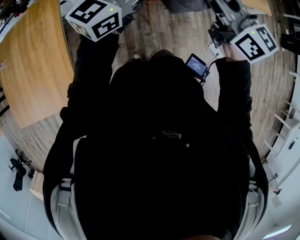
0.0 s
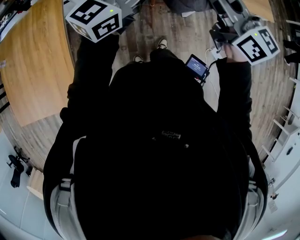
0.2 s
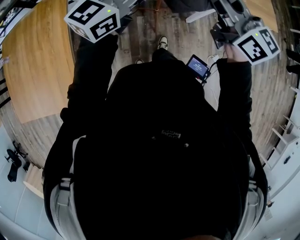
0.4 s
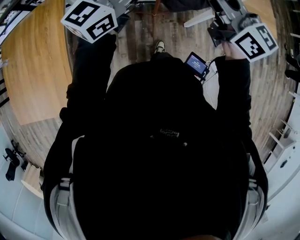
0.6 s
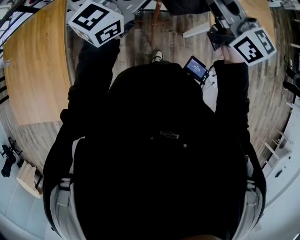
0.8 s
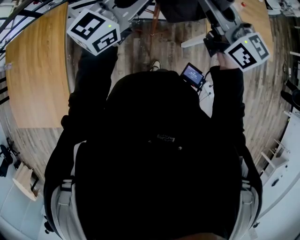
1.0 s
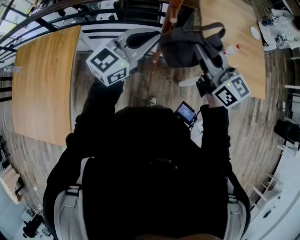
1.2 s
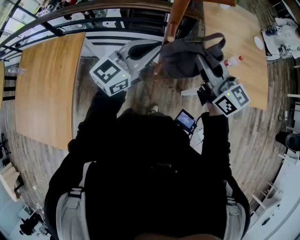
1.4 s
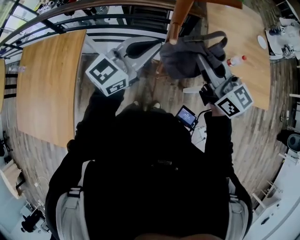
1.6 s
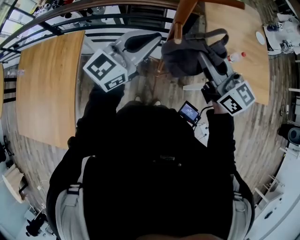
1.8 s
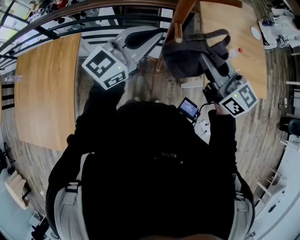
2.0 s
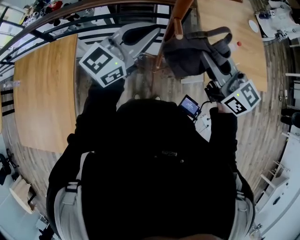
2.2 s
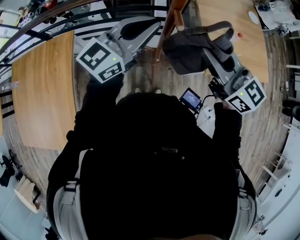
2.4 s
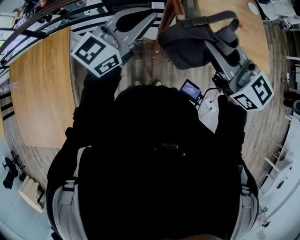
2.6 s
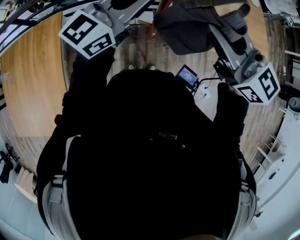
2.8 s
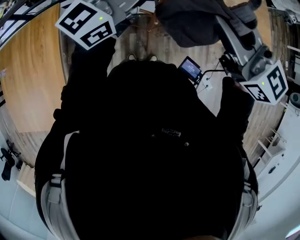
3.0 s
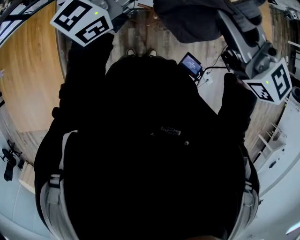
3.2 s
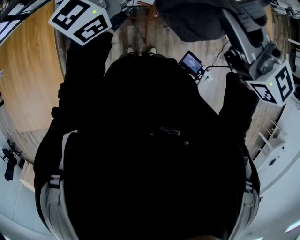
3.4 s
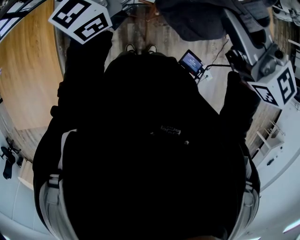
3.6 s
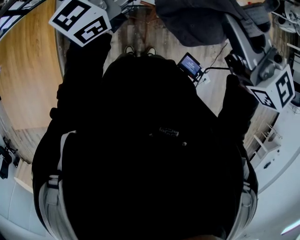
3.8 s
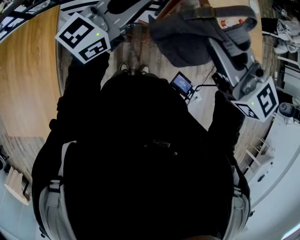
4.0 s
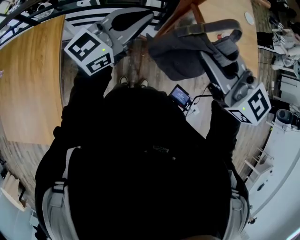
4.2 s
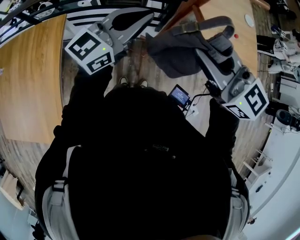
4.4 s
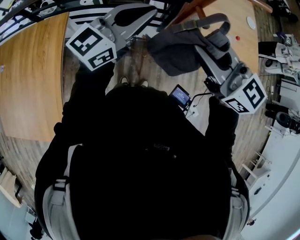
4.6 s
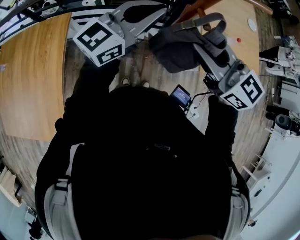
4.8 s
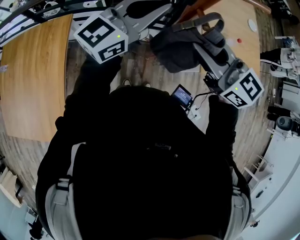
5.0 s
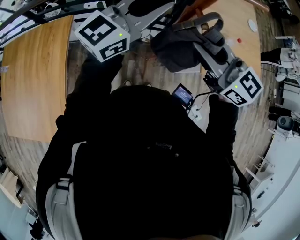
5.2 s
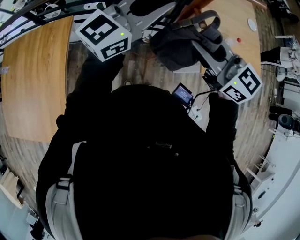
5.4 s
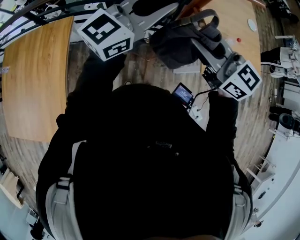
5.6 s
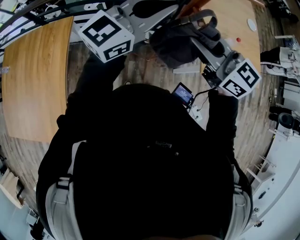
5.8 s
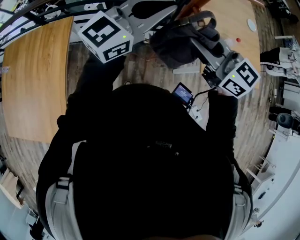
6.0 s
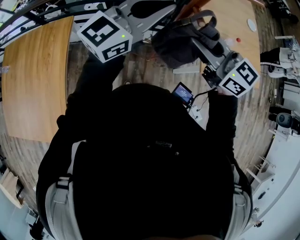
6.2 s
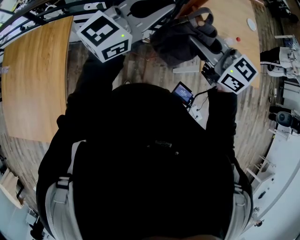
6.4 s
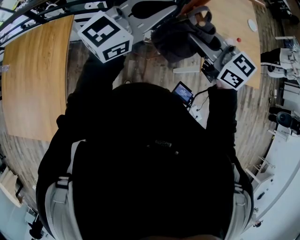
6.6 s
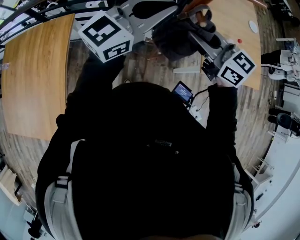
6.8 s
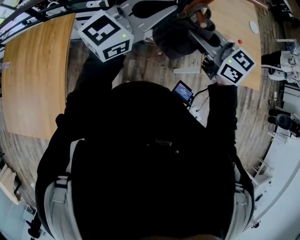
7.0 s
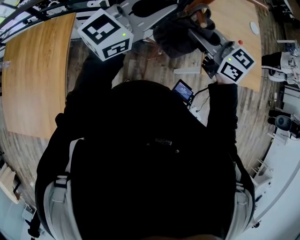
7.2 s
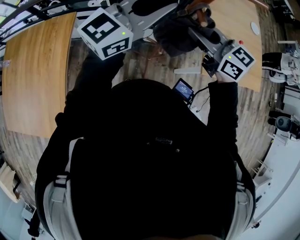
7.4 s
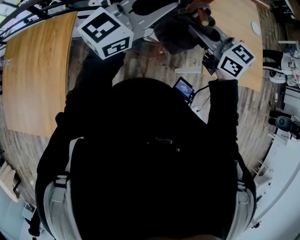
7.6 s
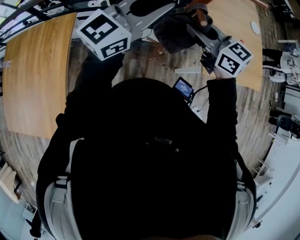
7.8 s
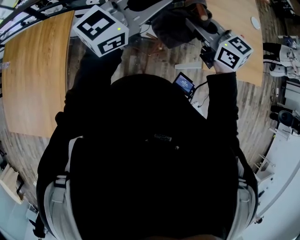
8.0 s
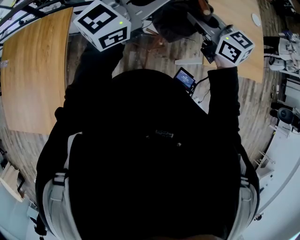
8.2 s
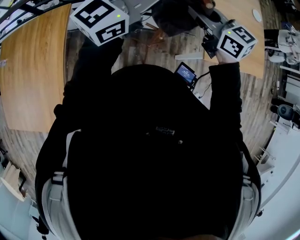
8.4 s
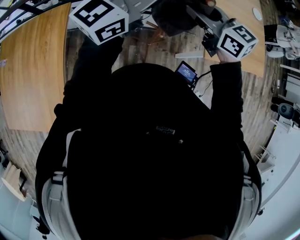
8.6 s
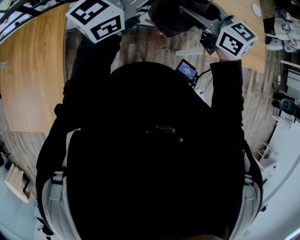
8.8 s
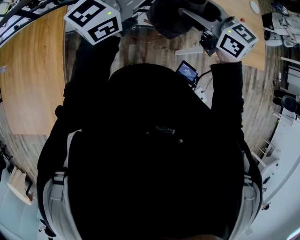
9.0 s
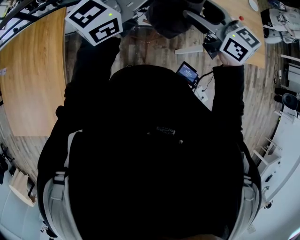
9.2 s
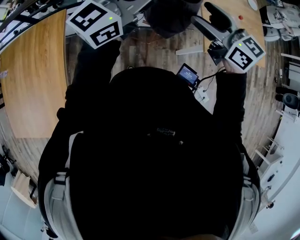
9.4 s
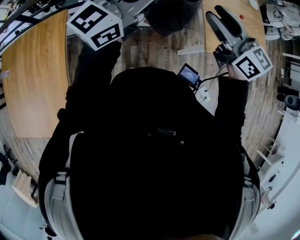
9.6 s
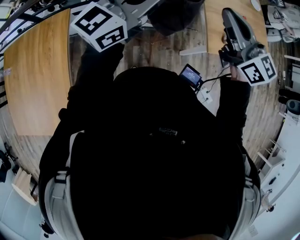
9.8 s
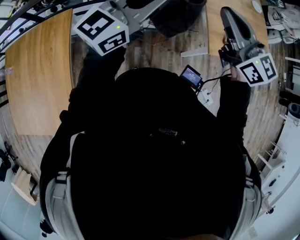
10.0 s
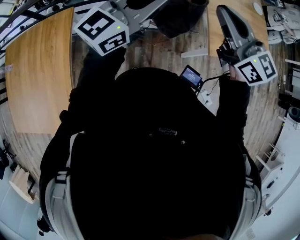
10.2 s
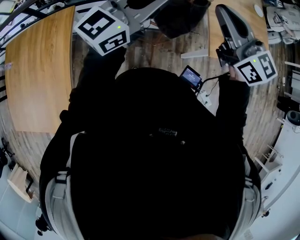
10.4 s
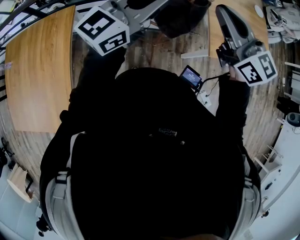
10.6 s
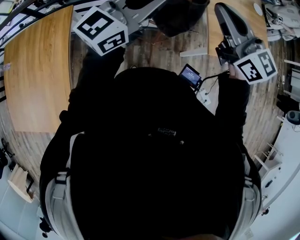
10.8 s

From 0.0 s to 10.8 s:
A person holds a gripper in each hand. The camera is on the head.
From 0.0 s to 1.6 s: Both grippers move forward, approximately 30 cm.
From 1.6 s to 3.0 s: The right gripper moves backward, about 5 cm.
From 3.0 s to 4.6 s: There are only small adjustments of the grippers.
From 4.6 s to 6.2 s: The left gripper goes about 5 cm upward.
From 6.2 s to 7.8 s: The right gripper moves roughly 5 cm.
From 7.8 s to 9.2 s: The right gripper opens up.
From 9.2 s to 10.8 s: The right gripper is displaced upward by some 10 cm, and closes.

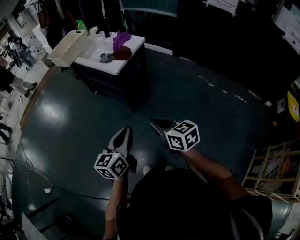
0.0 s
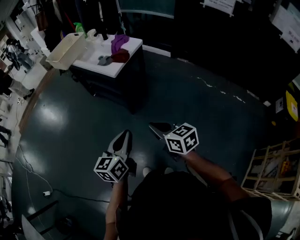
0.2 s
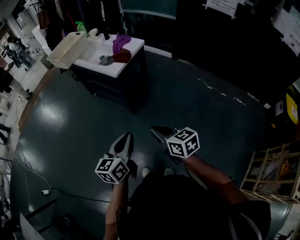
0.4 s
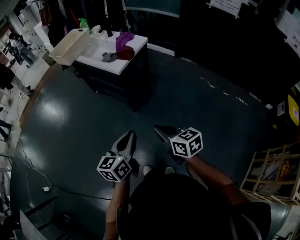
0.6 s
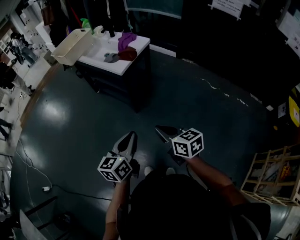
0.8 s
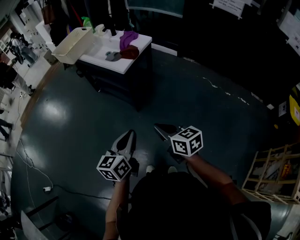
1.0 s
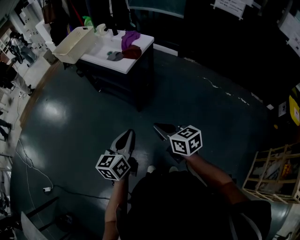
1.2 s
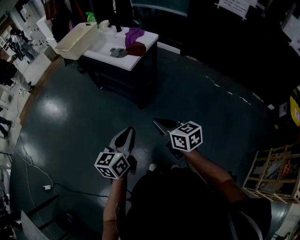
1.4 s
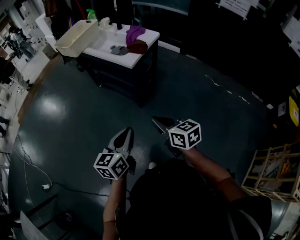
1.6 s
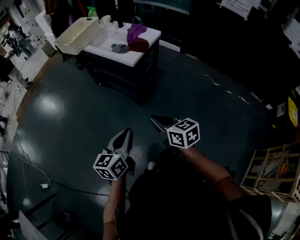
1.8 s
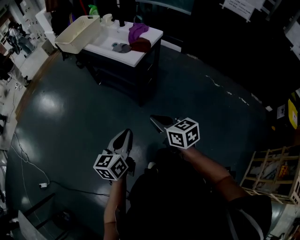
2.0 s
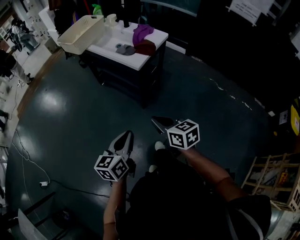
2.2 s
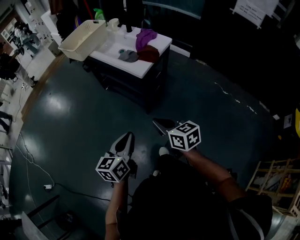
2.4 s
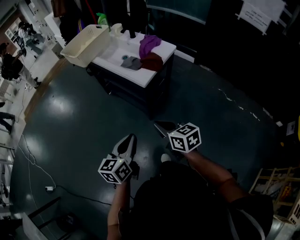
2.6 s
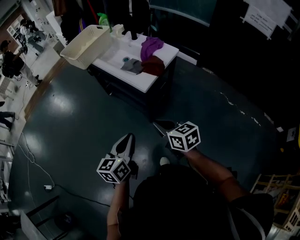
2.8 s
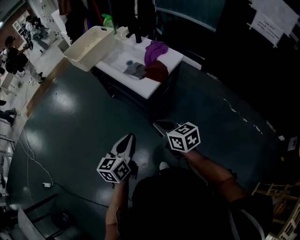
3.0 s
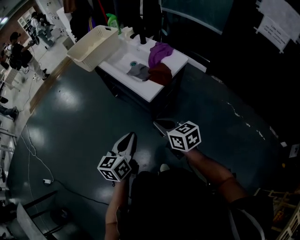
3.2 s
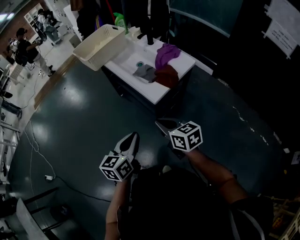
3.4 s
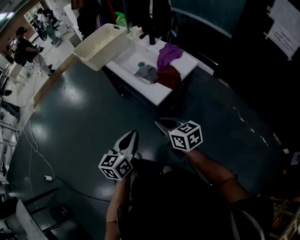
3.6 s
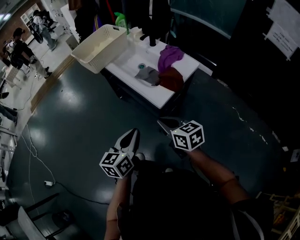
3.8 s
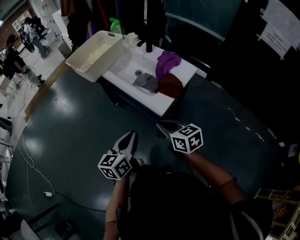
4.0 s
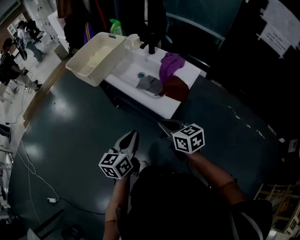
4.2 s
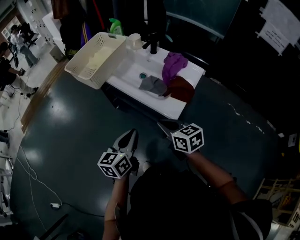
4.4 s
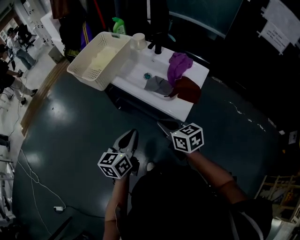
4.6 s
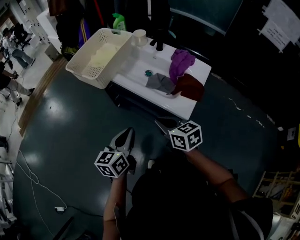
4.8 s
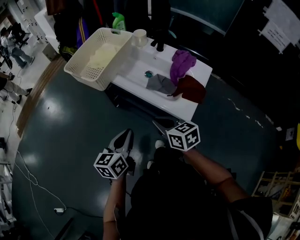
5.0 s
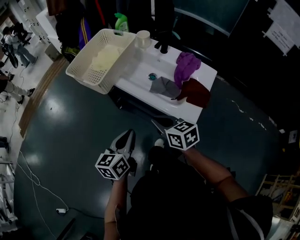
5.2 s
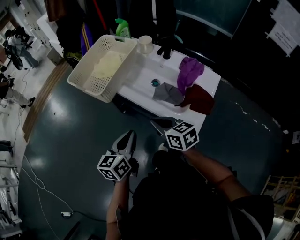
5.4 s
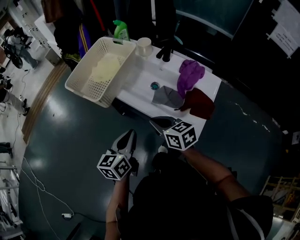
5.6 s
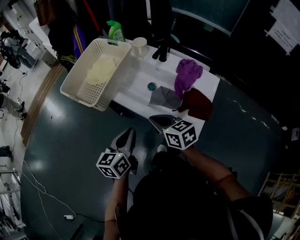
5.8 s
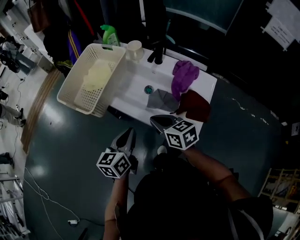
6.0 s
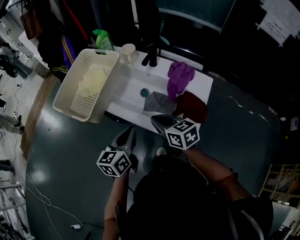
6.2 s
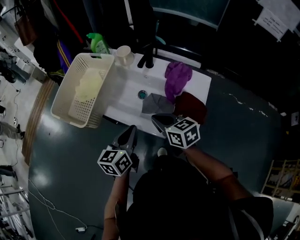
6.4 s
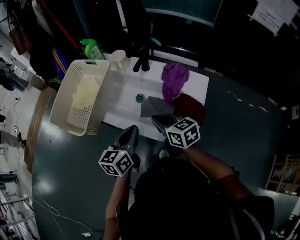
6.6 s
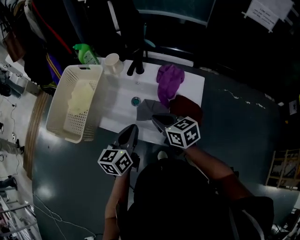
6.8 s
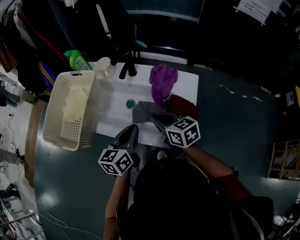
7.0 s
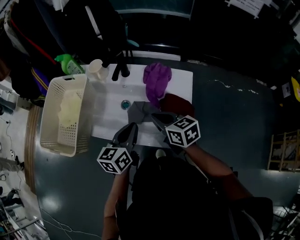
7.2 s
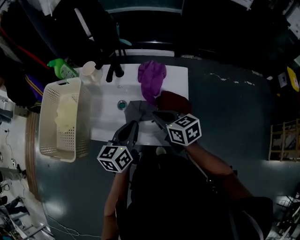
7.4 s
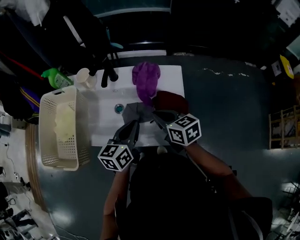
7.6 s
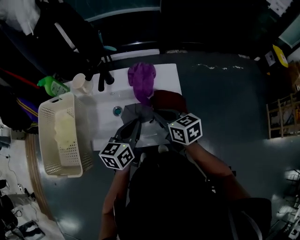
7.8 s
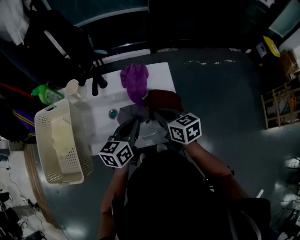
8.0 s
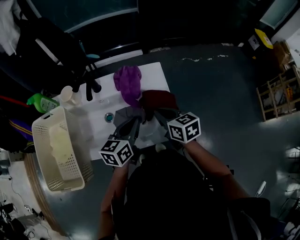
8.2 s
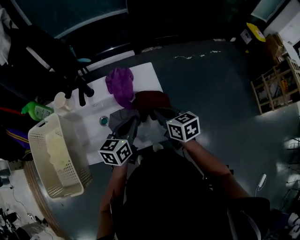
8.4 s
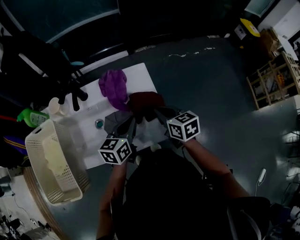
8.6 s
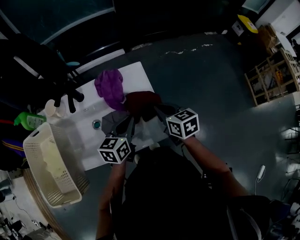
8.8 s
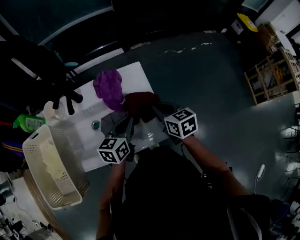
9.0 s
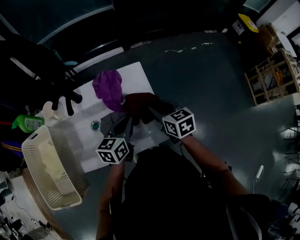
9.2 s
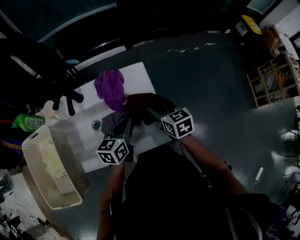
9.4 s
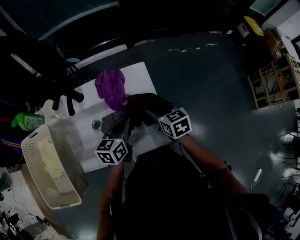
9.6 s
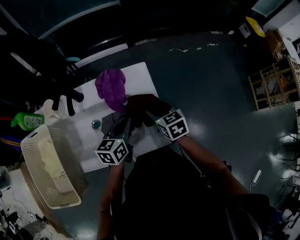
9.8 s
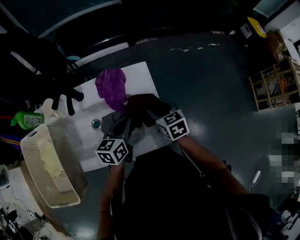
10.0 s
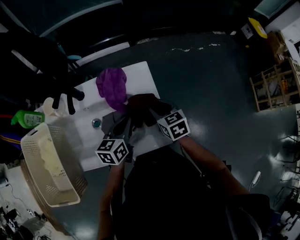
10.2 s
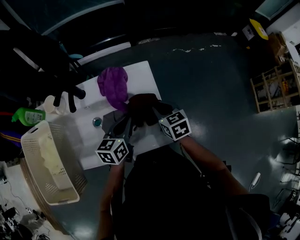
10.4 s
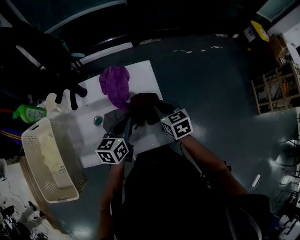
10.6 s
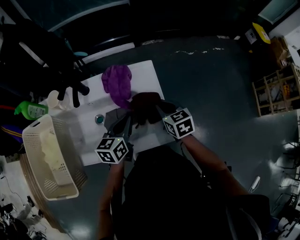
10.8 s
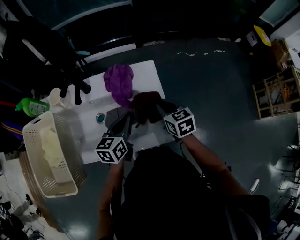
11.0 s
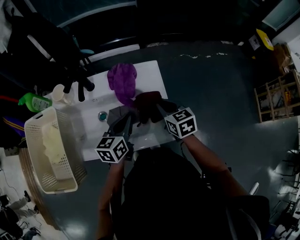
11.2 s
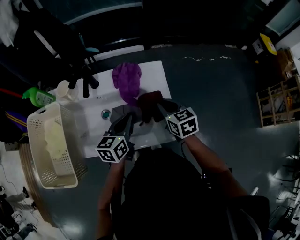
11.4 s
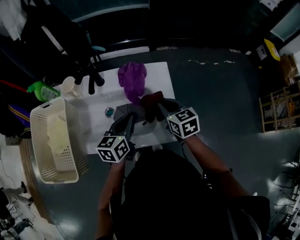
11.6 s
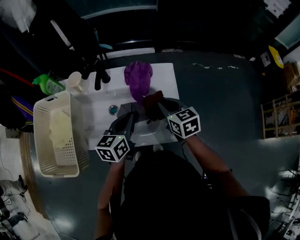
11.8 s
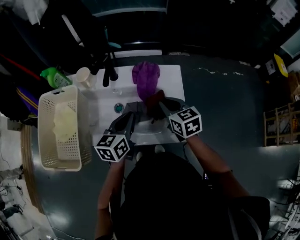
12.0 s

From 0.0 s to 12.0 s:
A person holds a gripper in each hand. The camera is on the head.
From 0.0 s to 1.6 s: Both grippers travel together to the left, approximately 10 cm.
From 1.6 s to 3.0 s: Both grippers move forward, about 20 cm.
From 3.0 s to 4.4 s: The grippers both shift forward and to the left by some 20 cm.
From 4.4 s to 6.0 s: The grippers both shift forward by some 20 cm.
From 6.0 s to 7.6 s: The right gripper changes place by some 15 cm, and swivels roughly 30 degrees; the left gripper shifts by some 20 cm, and rotates about 30 degrees.
From 7.6 s to 9.0 s: Both grippers travel together to the right, approximately 10 cm. The right gripper rotates roughly 30 degrees; the left gripper turns by roughly 20 degrees.
From 9.0 s to 10.4 s: The right gripper shifts by approximately 5 cm, and opens, then closes again.
From 10.4 s to 12.0 s: The grippers both shift to the left and upward by about 10 cm.

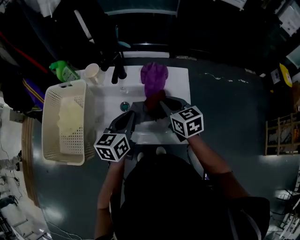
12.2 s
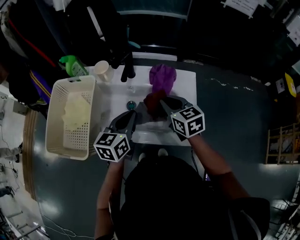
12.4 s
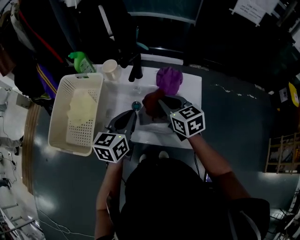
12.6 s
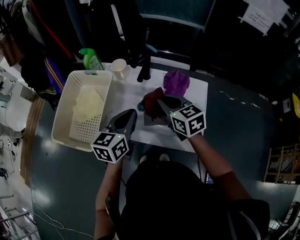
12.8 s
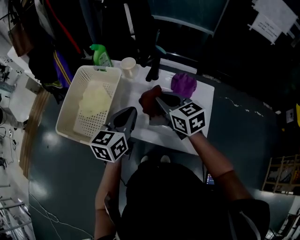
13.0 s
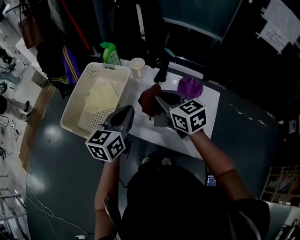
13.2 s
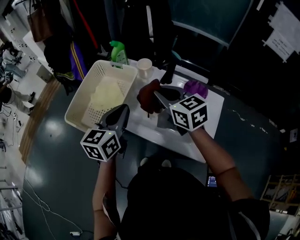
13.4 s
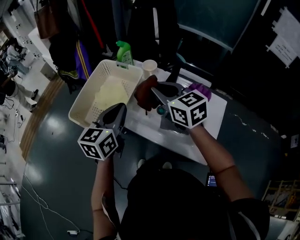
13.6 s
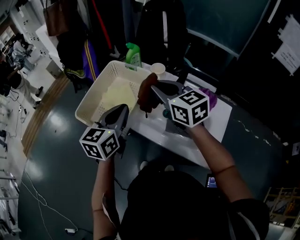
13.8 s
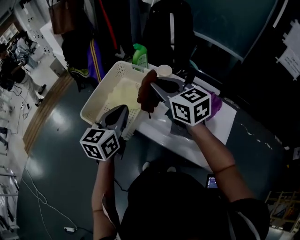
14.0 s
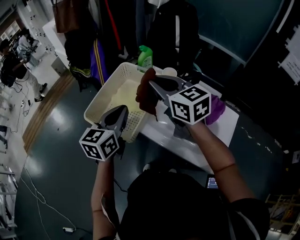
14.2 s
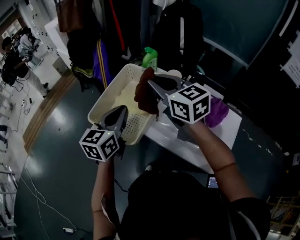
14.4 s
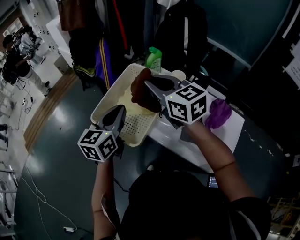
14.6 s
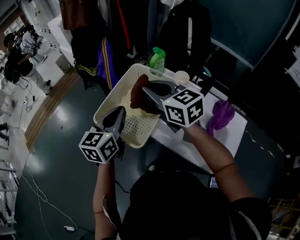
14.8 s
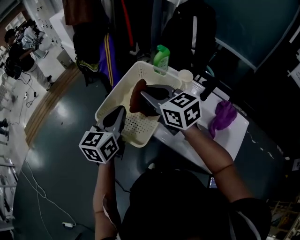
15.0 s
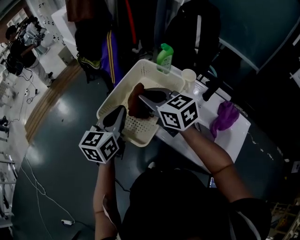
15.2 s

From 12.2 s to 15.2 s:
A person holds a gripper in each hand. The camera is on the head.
From 12.2 s to 13.8 s: The right gripper ends up about 30 cm from where it was, and turns by roughly 40 degrees. Meanwhile the left gripper ends up approximately 25 cm from where it was, and swivels approximately 30 degrees.
From 13.8 s to 15.2 s: The right gripper travels to the left by approximately 15 cm. Meanwhile the left gripper is displaced to the left and forward by about 15 cm.
